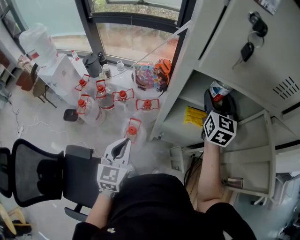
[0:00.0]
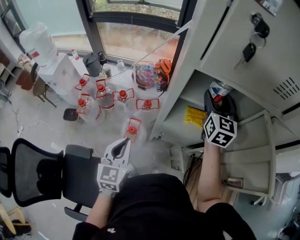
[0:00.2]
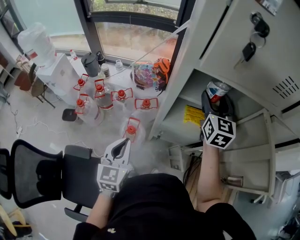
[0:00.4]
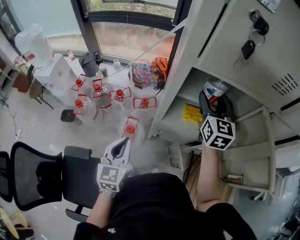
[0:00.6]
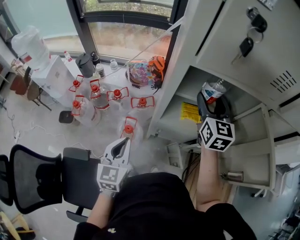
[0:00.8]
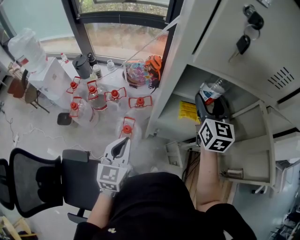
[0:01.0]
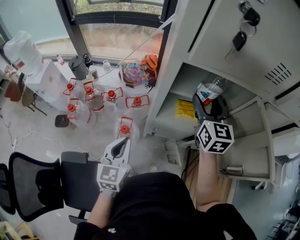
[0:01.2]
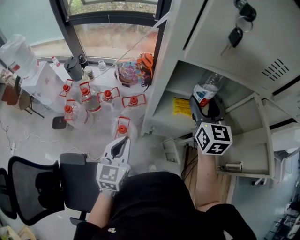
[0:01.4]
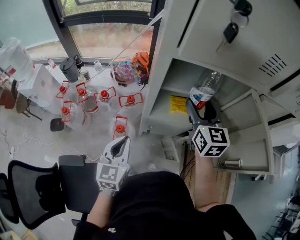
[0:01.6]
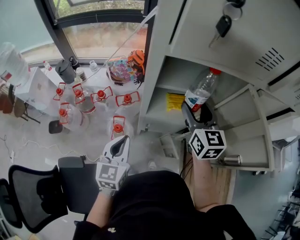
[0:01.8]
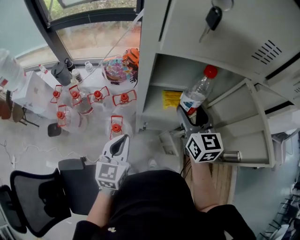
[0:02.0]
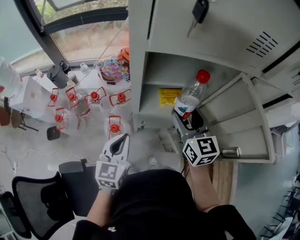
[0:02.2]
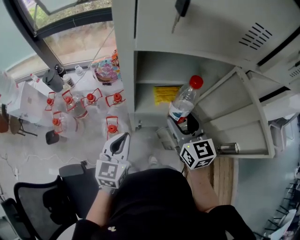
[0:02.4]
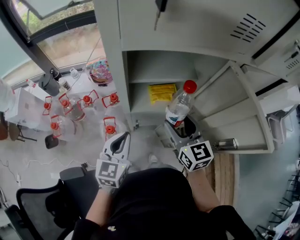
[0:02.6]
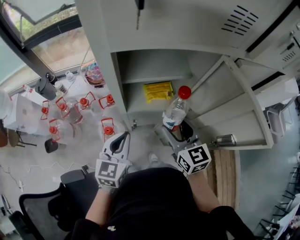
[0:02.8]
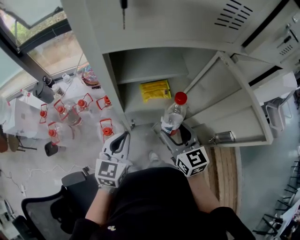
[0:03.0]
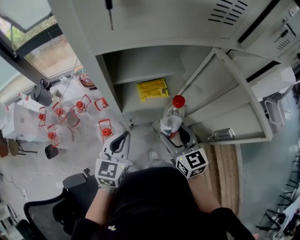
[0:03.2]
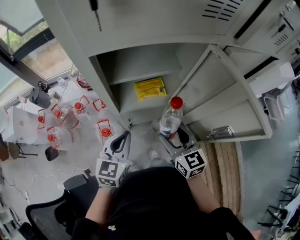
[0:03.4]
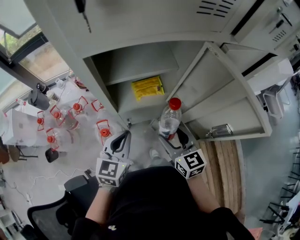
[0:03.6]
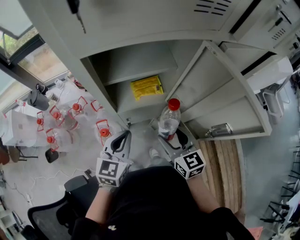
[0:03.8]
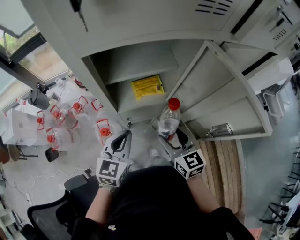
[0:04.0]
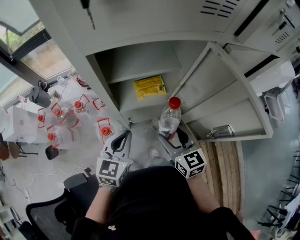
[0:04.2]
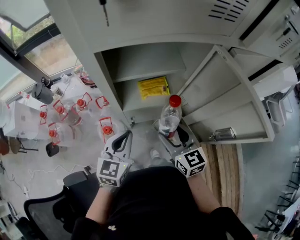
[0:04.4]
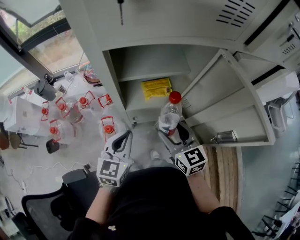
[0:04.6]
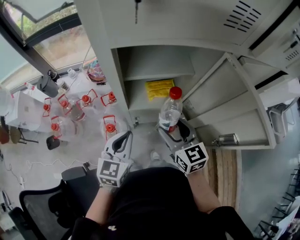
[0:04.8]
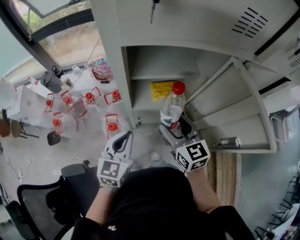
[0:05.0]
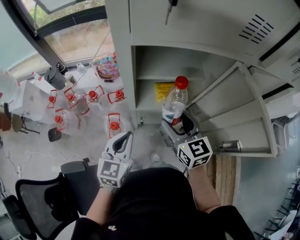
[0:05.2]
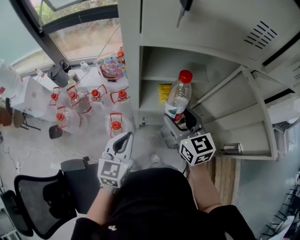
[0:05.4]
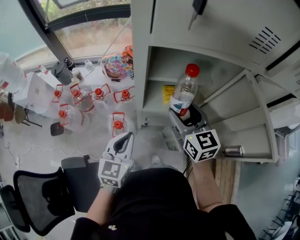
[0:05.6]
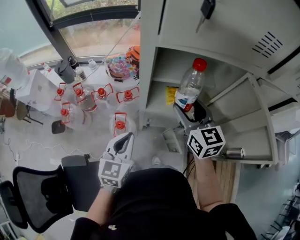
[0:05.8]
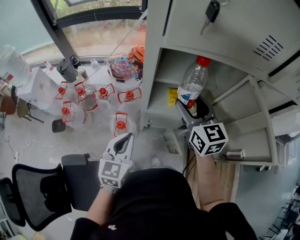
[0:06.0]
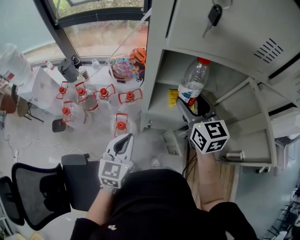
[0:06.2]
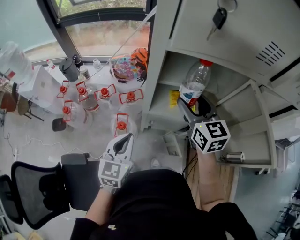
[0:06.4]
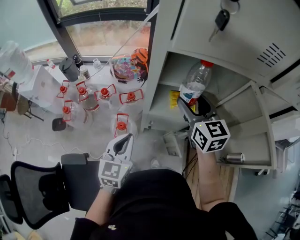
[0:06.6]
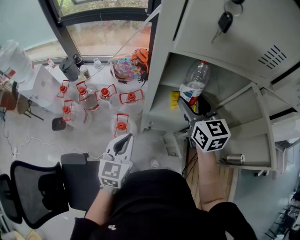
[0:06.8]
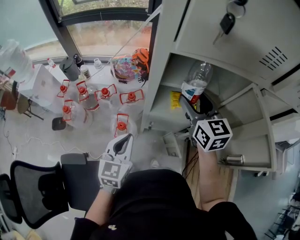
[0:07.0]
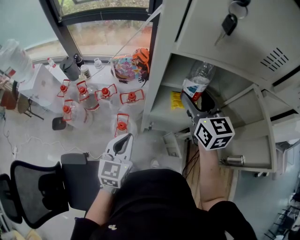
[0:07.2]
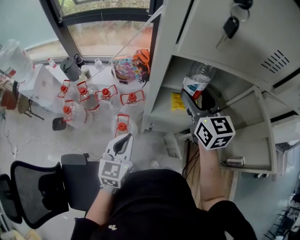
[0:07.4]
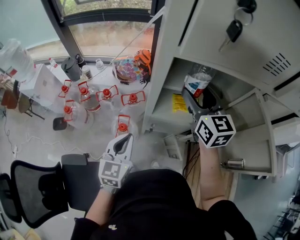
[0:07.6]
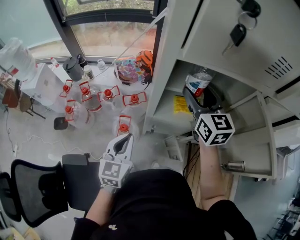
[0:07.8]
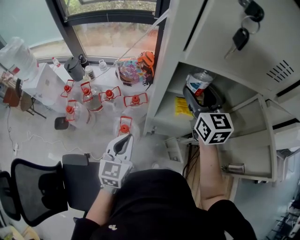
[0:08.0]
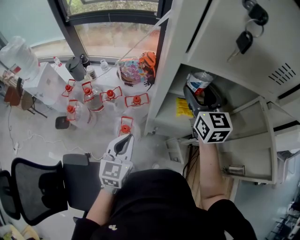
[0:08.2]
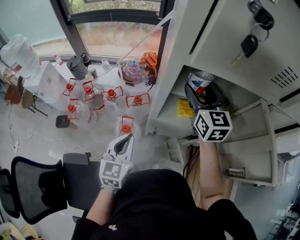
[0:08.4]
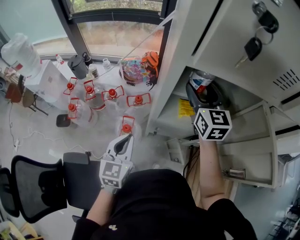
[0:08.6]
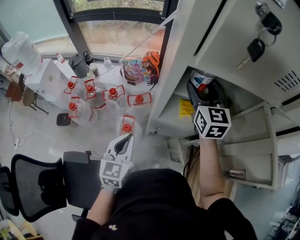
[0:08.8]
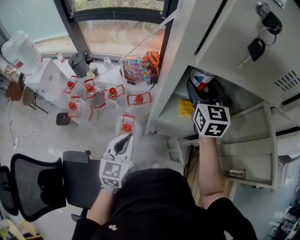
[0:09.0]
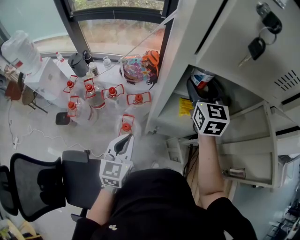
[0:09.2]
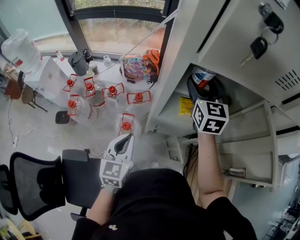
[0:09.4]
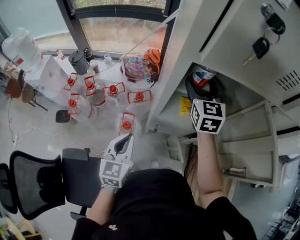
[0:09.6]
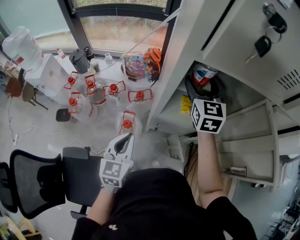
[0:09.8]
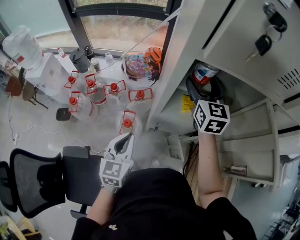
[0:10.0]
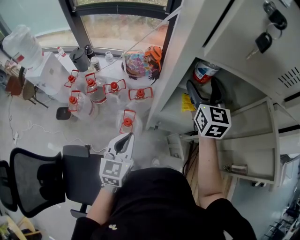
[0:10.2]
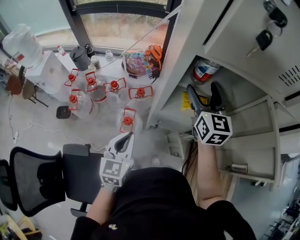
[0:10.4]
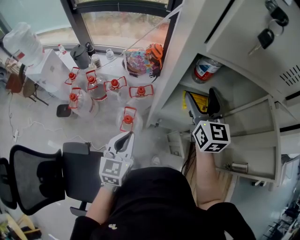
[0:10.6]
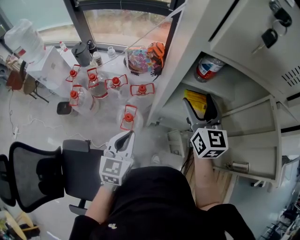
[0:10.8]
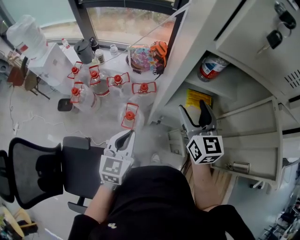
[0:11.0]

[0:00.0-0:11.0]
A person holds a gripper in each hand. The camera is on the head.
0:00.0 to 0:01.6: The right gripper goes roughly 10 cm backward.
0:01.6 to 0:03.2: The right gripper heads backward and downward, covering approximately 20 cm; the left gripper travels to the right by some 10 cm, and changes its angle by roughly 20 degrees.
0:03.2 to 0:04.8: The grippers make only small movements.
0:04.8 to 0:06.2: The right gripper goes some 15 cm upward and forward; the left gripper is displaced to the left by some 5 cm.
0:06.2 to 0:07.8: The right gripper moves forward, approximately 5 cm.
0:07.8 to 0:09.4: The right gripper moves forward, roughly 5 cm.
0:09.4 to 0:11.0: The right gripper heads backward, covering about 15 cm.

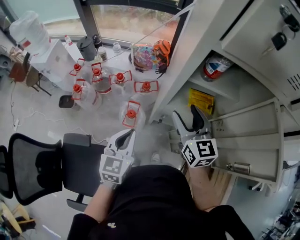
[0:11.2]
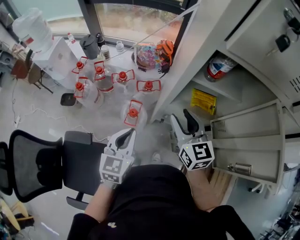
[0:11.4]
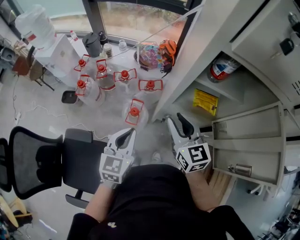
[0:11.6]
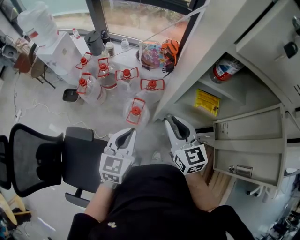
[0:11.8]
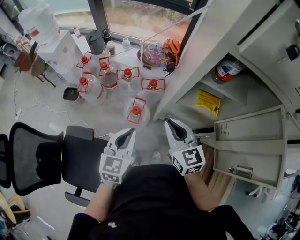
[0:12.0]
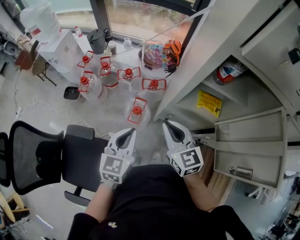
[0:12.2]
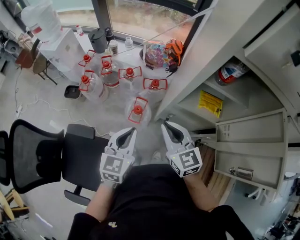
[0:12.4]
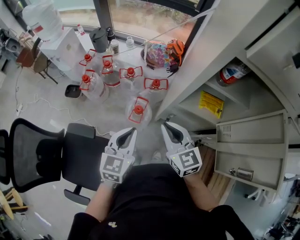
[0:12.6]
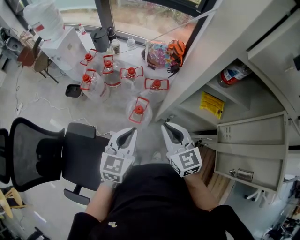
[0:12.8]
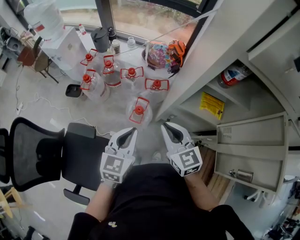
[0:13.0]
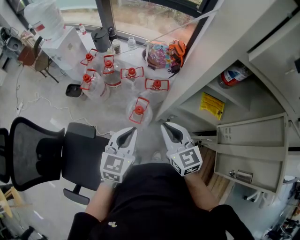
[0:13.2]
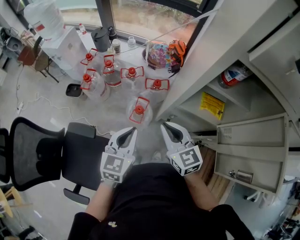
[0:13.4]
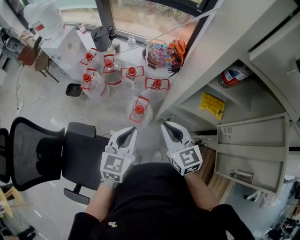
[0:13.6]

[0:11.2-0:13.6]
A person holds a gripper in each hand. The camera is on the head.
0:11.2 to 0:12.4: The right gripper is displaced to the left, backward and downward by roughly 15 cm, and closes its fingers.
0:12.4 to 0:13.6: There are only small adjustments of the grippers.

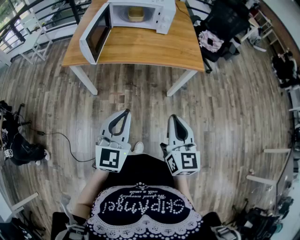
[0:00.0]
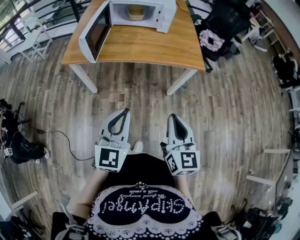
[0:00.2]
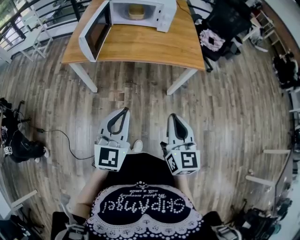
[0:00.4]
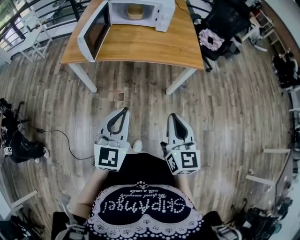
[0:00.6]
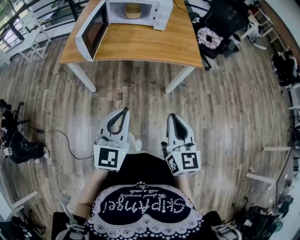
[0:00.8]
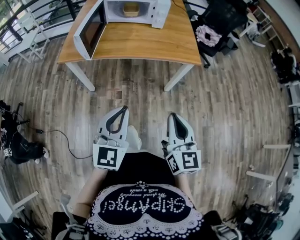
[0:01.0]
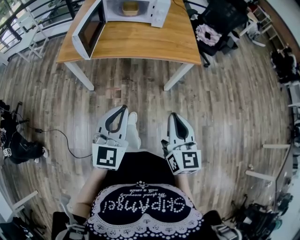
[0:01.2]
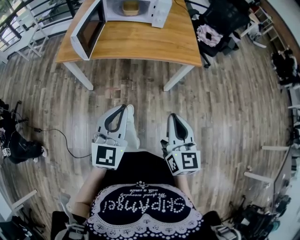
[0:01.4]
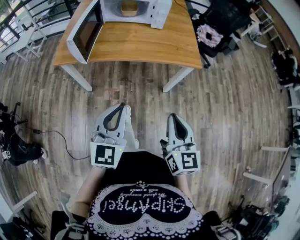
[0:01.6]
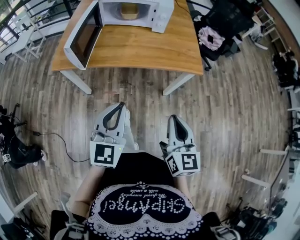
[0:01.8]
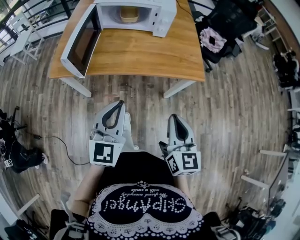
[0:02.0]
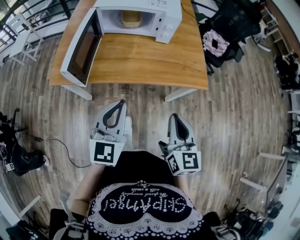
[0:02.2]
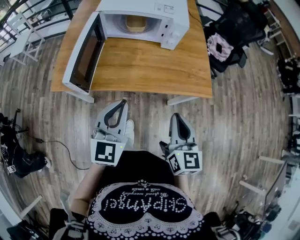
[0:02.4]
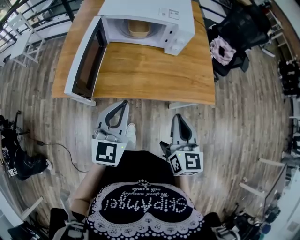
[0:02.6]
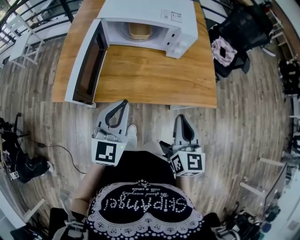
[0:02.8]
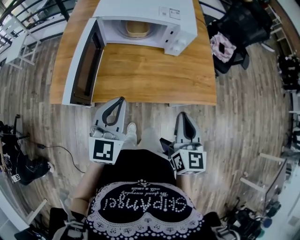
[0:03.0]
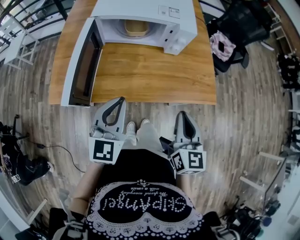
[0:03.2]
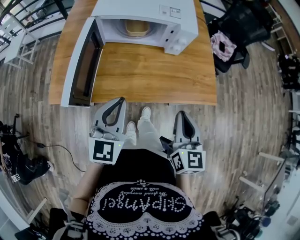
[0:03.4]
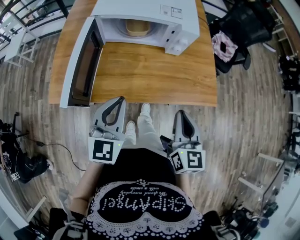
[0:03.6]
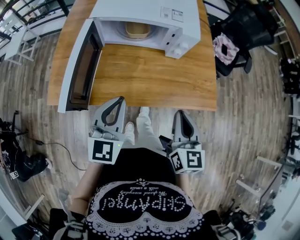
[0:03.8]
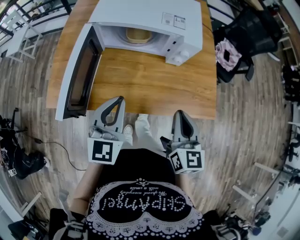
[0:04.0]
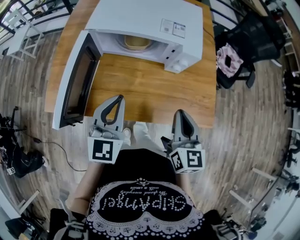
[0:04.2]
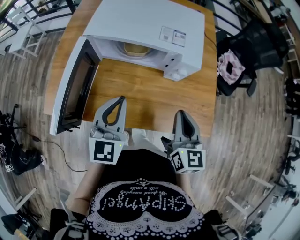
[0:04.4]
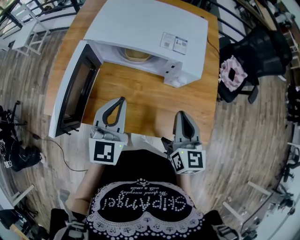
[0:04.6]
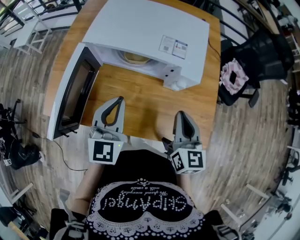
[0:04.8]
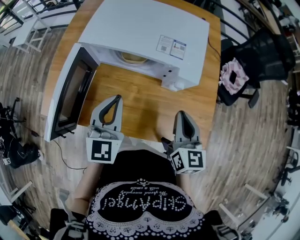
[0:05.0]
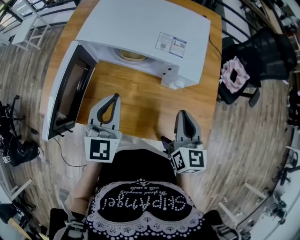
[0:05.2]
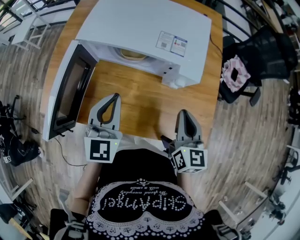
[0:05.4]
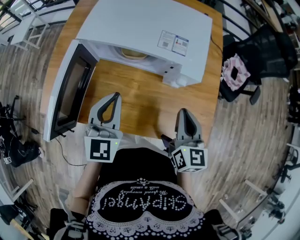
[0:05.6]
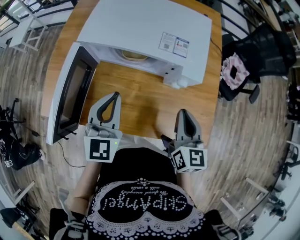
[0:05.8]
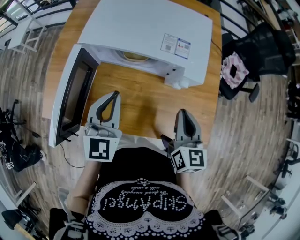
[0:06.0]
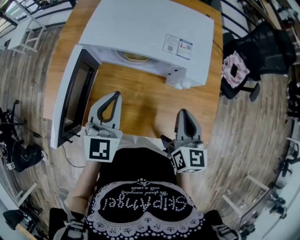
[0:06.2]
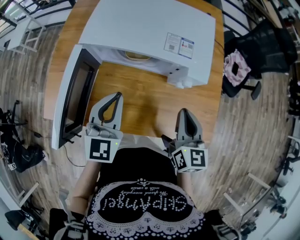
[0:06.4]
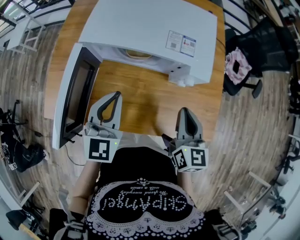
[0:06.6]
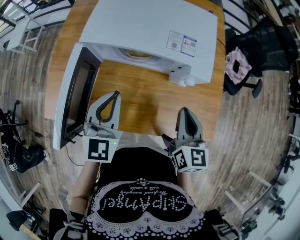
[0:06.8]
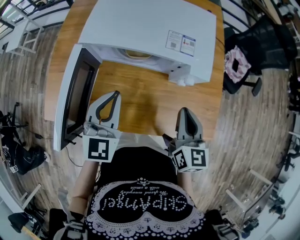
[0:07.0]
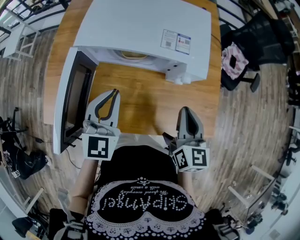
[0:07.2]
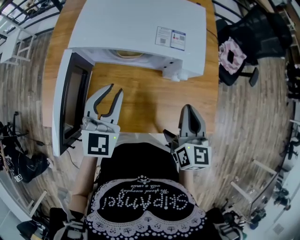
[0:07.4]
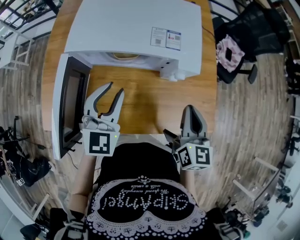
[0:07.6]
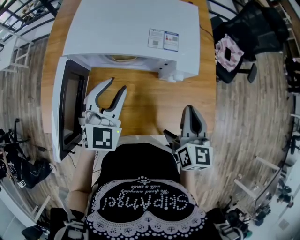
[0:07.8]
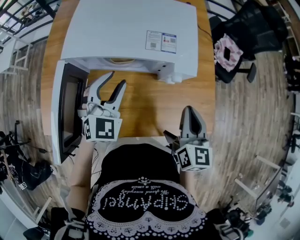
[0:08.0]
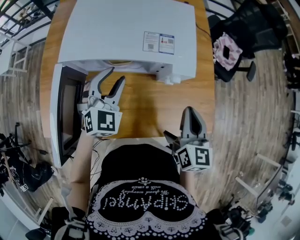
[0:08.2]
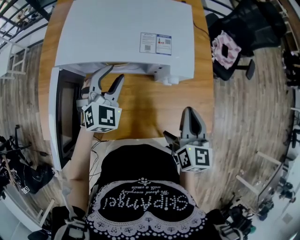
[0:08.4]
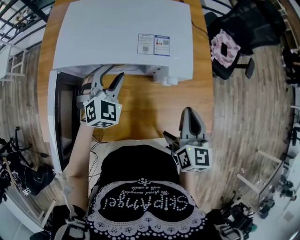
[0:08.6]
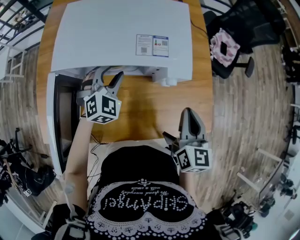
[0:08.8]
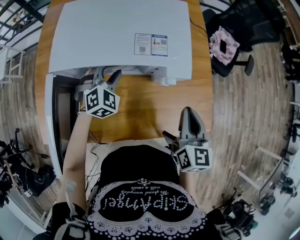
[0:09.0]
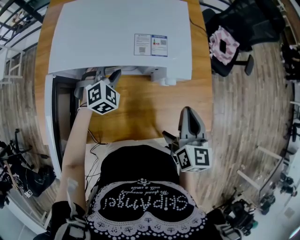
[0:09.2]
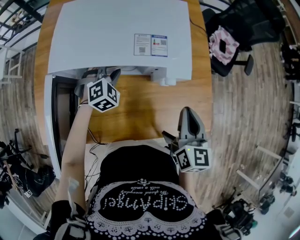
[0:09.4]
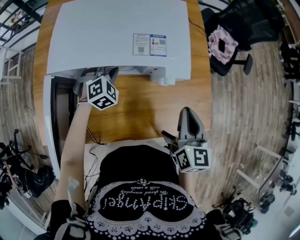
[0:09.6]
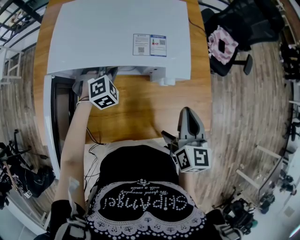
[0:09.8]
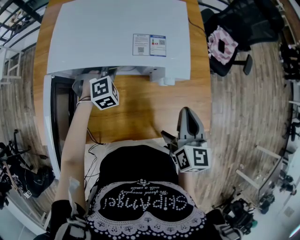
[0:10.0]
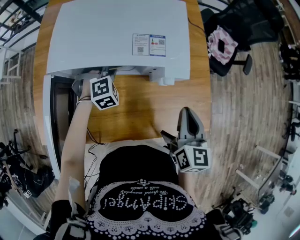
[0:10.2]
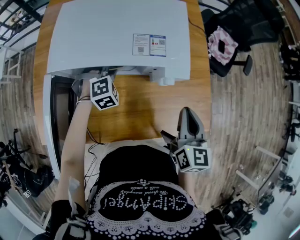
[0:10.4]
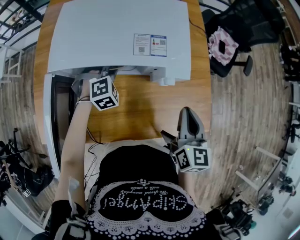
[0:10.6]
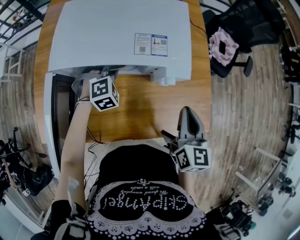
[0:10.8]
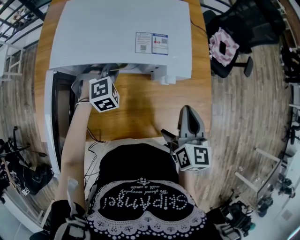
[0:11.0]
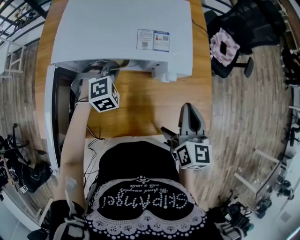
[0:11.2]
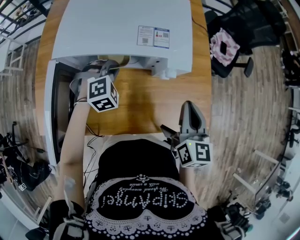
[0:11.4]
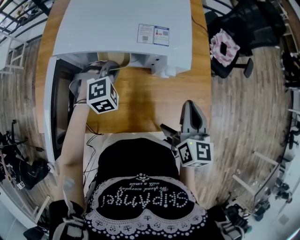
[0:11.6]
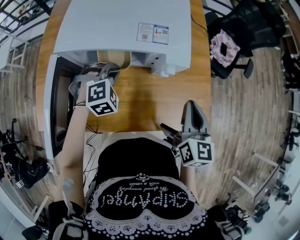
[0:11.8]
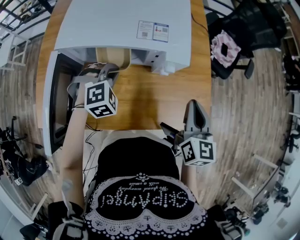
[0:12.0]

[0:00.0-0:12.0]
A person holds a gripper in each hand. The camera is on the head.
0:00.0 to 0:01.6: The left gripper moves some 5 cm.
0:01.6 to 0:03.0: Both grippers travel together forward, approximately 30 cm.
0:03.0 to 0:04.4: The two grippers go approximately 15 cm forward.
0:04.4 to 0:06.0: The grippers both shift forward by about 5 cm.
0:06.0 to 0:07.6: The left gripper opens.
0:07.6 to 0:09.0: The left gripper travels downward and forward by about 20 cm, and rotates roughly 40 degrees.
0:09.0 to 0:10.4: The left gripper is displaced downward by approximately 5 cm, swivels roughly 20 degrees, and closes.
0:10.4 to 0:12.0: The left gripper is displaced backward and upward by approximately 10 cm.
